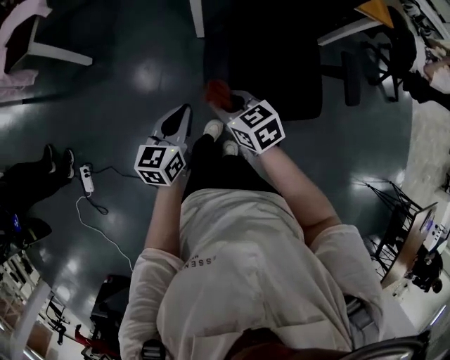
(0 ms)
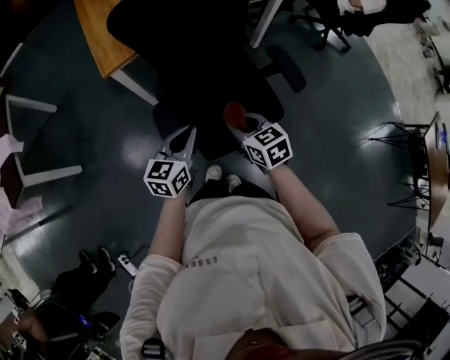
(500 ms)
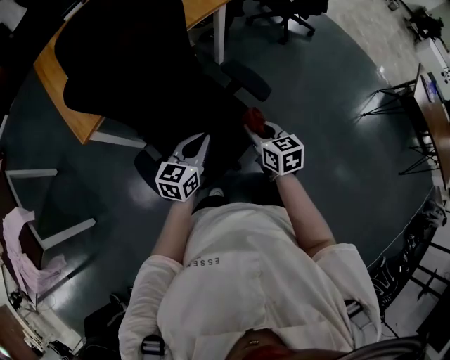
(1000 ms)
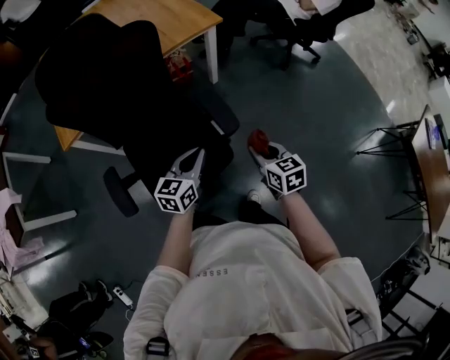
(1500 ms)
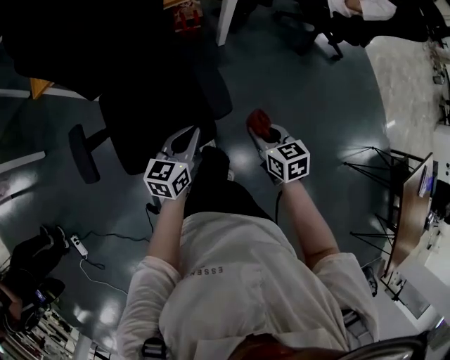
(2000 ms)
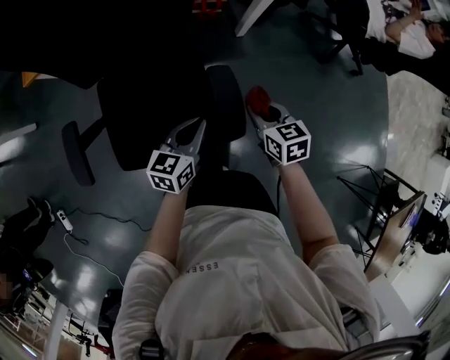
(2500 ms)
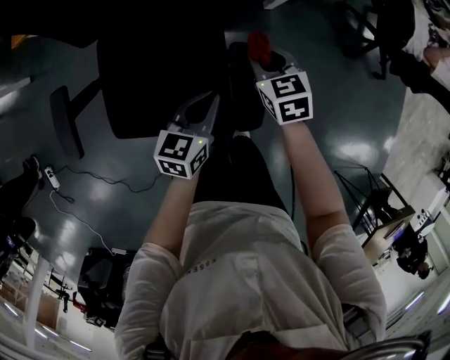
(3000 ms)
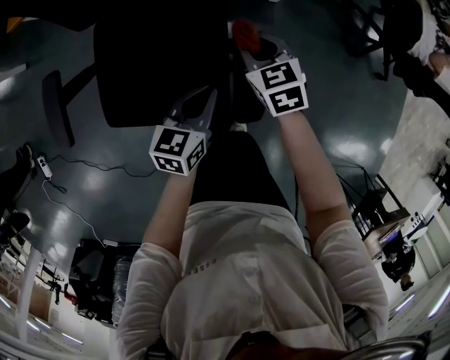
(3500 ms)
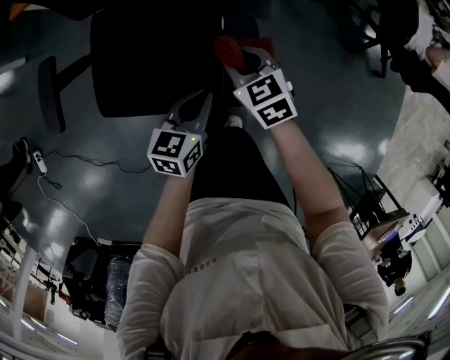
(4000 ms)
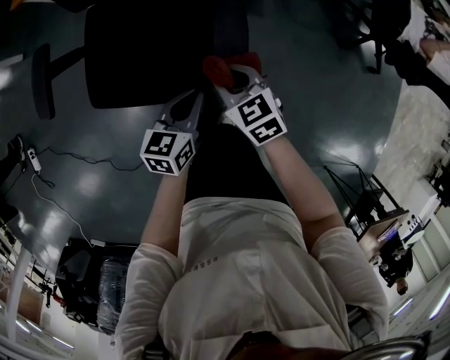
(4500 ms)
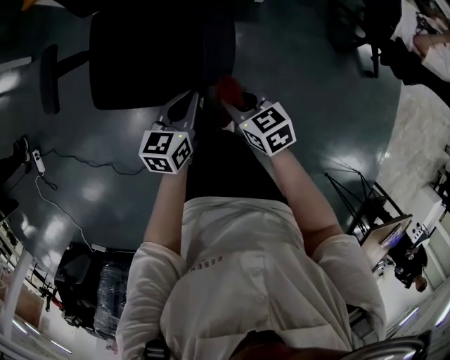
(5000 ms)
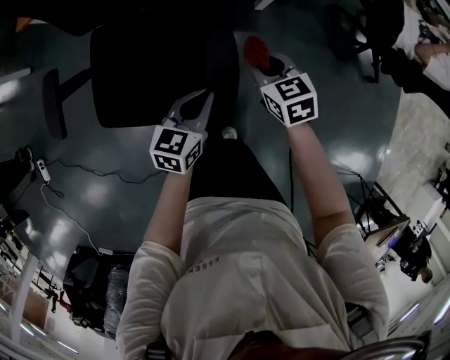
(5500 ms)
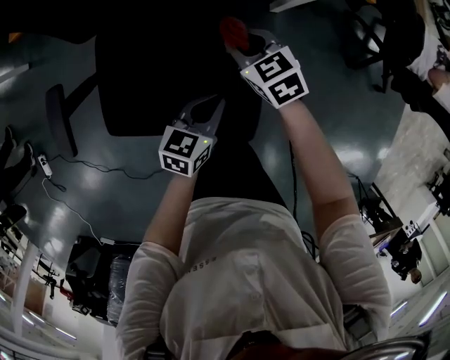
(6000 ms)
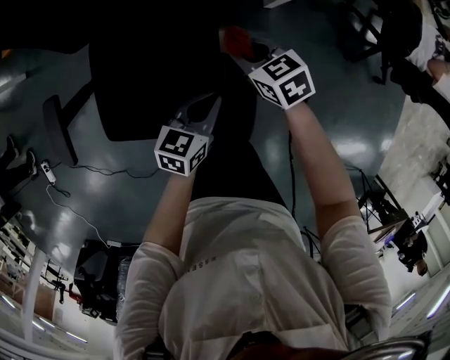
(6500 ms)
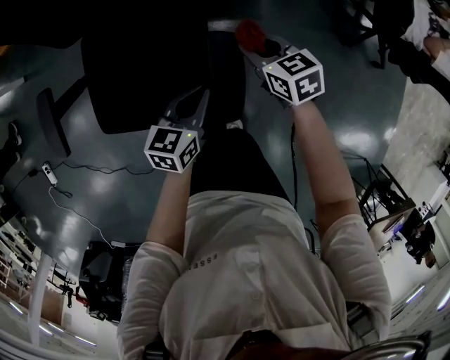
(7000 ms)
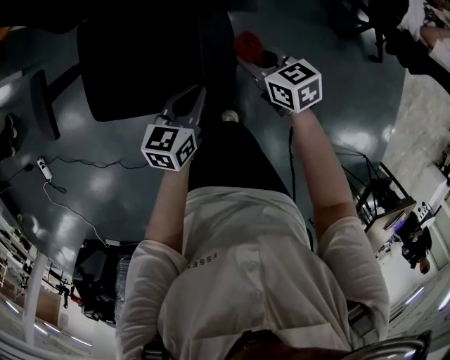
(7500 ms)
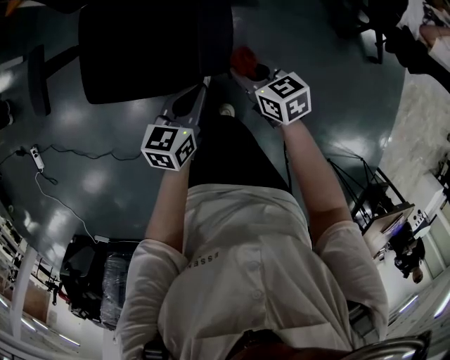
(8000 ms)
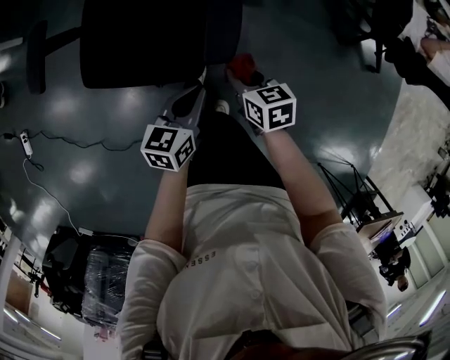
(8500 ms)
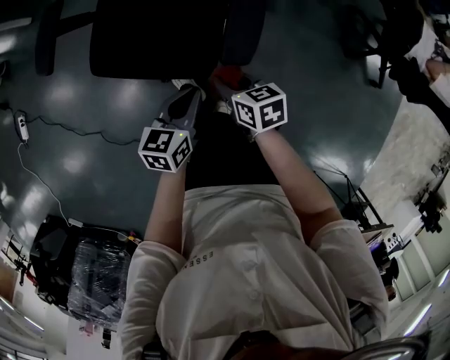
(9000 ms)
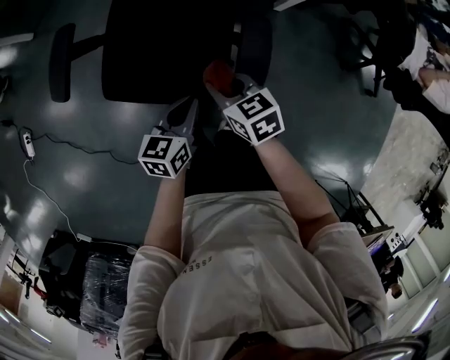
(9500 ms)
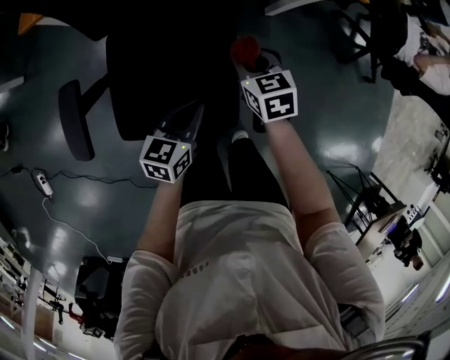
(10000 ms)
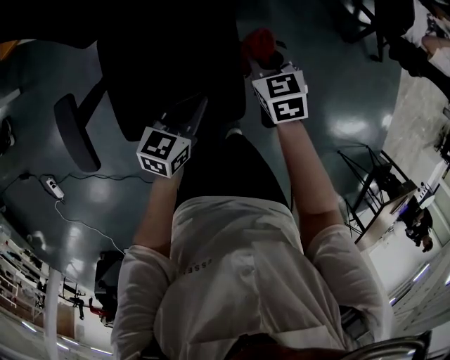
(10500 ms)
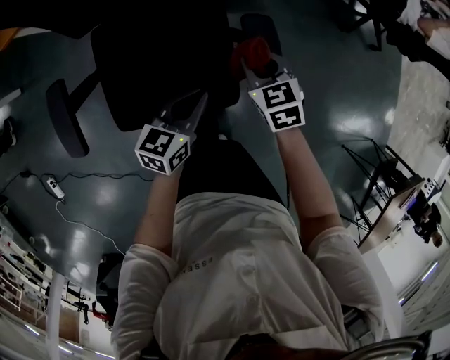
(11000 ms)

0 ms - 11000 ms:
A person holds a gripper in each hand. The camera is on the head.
0 ms - 2000 ms: Both grippers are carried some 60 cm. The right gripper turns by approximately 40 degrees; the left gripper changes its angle by about 20 degrees.
2000 ms - 3500 ms: The left gripper heads forward and downward, covering about 15 cm. The right gripper moves forward and to the left, some 30 cm, and swivels approximately 30 degrees.
3500 ms - 5500 ms: The grippers both shift to the right by some 5 cm. The left gripper moves some 10 cm backward and comes back; the right gripper moves approximately 25 cm backward and comes back.
5500 ms - 7500 ms: The left gripper moves roughly 10 cm forward and comes back. The right gripper travels forward and back again, approximately 15 cm each way.
7500 ms - 9000 ms: The grippers both shift backward and to the left by approximately 15 cm.
9000 ms - 11000 ms: The left gripper moves roughly 15 cm, and changes its angle by about 30 degrees; the right gripper turns by roughly 30 degrees.

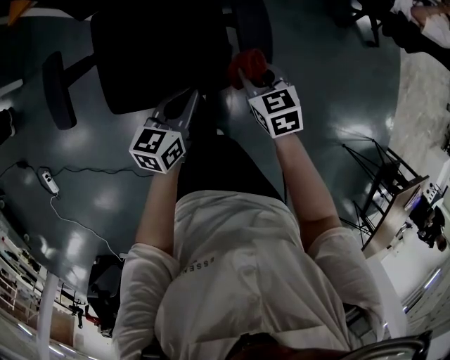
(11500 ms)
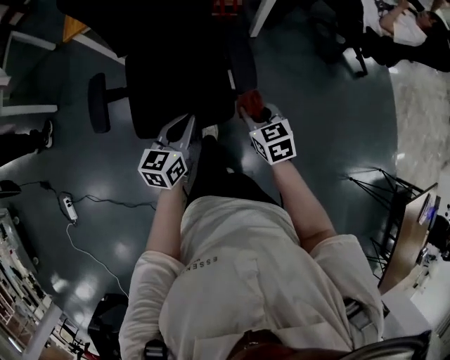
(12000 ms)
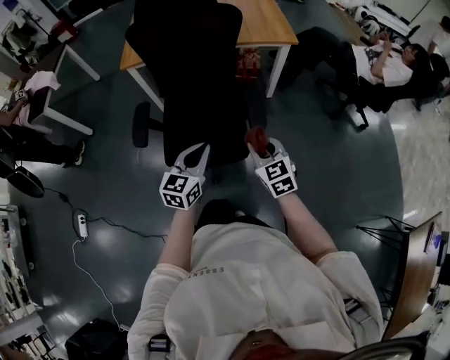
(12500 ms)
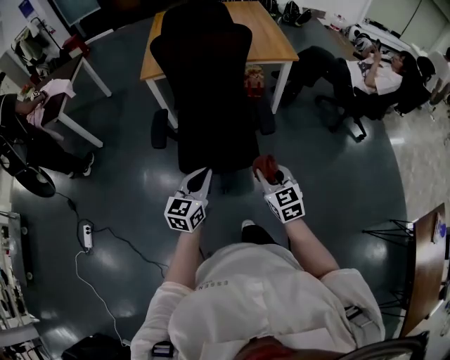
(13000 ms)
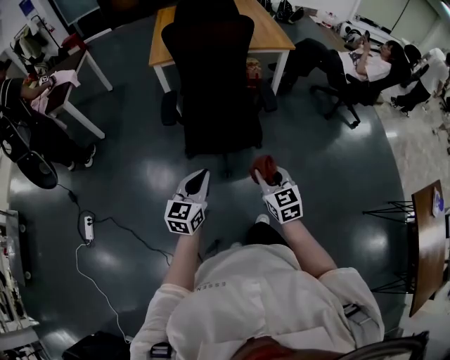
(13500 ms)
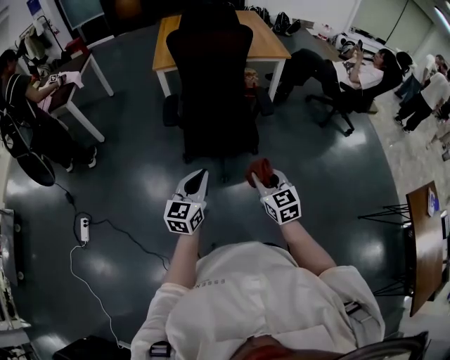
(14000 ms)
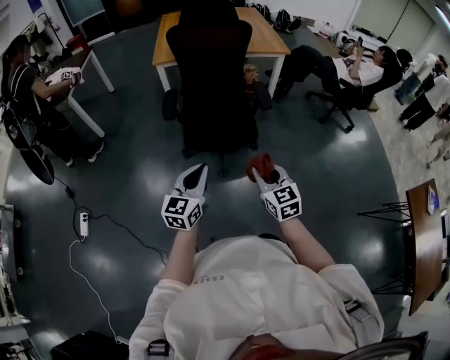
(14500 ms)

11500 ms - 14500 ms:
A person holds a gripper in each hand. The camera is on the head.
11500 ms - 13000 ms: The right gripper moves backward and upward, about 35 cm, and changes its angle by approximately 30 degrees, while the left gripper moves upward, backward and to the left, approximately 35 cm, and swivels about 30 degrees.
13000 ms - 14500 ms: The grippers both shift backward by about 20 cm.

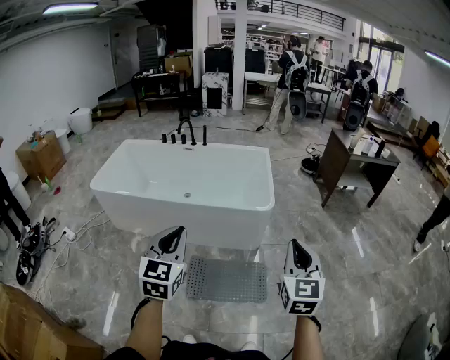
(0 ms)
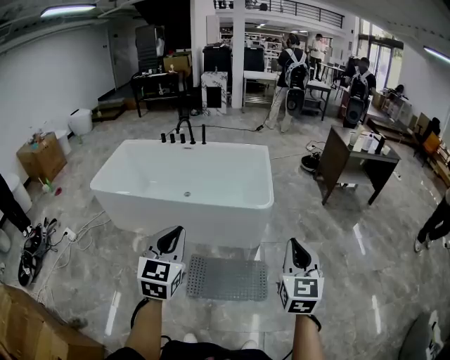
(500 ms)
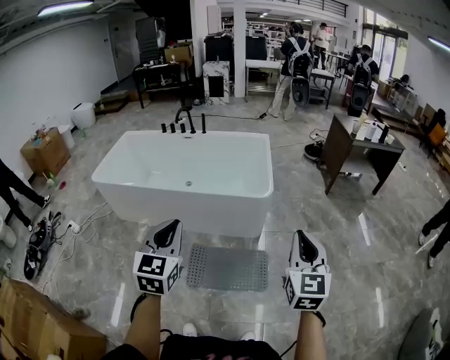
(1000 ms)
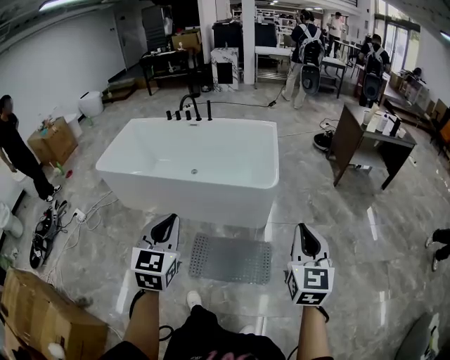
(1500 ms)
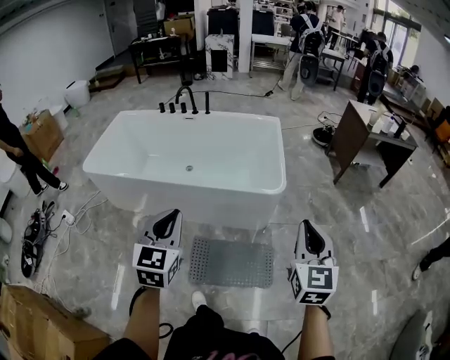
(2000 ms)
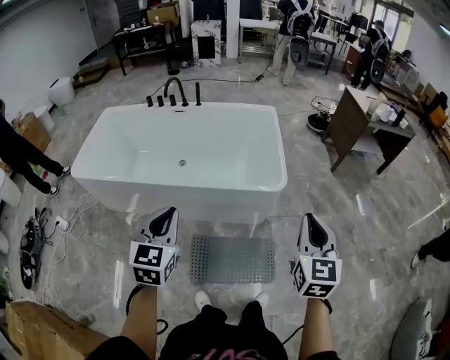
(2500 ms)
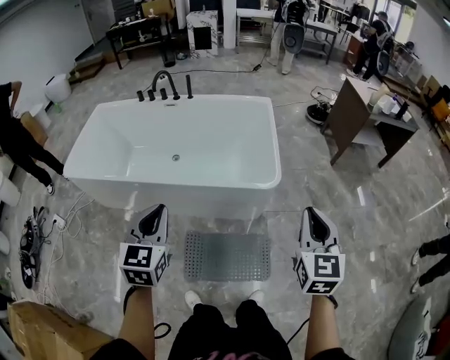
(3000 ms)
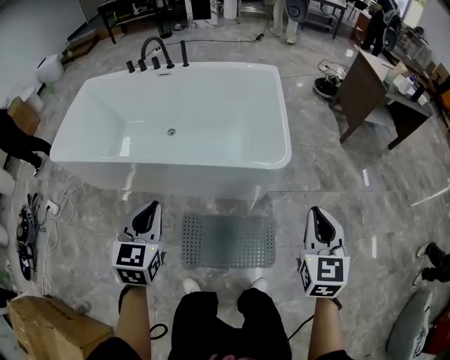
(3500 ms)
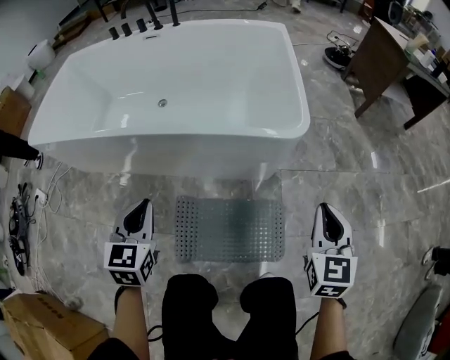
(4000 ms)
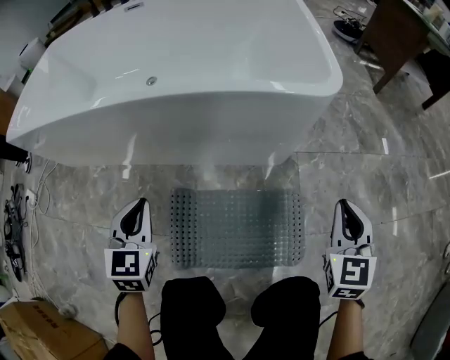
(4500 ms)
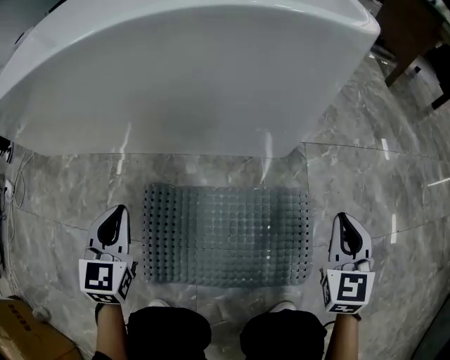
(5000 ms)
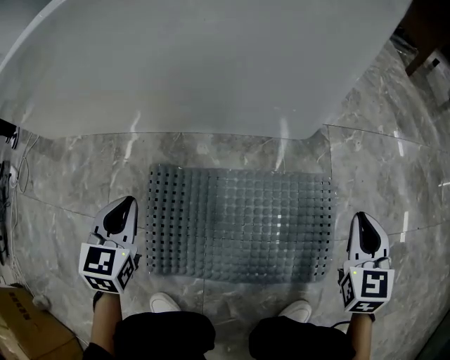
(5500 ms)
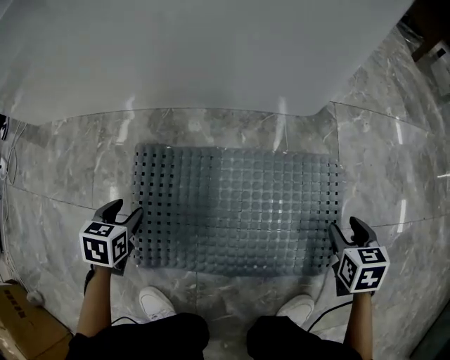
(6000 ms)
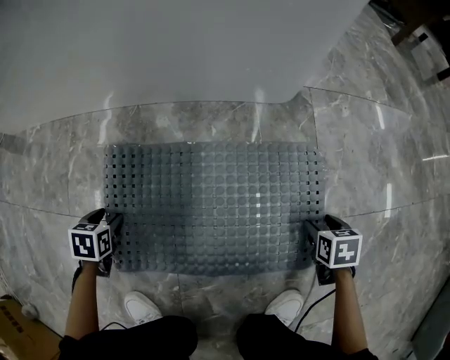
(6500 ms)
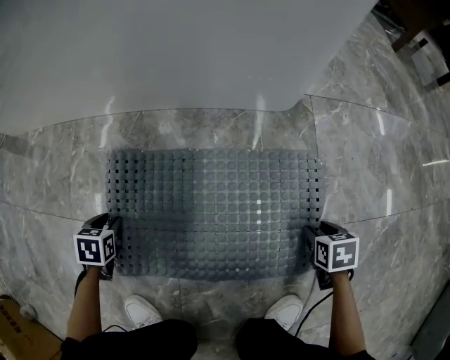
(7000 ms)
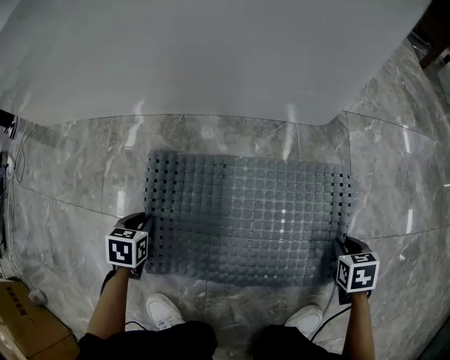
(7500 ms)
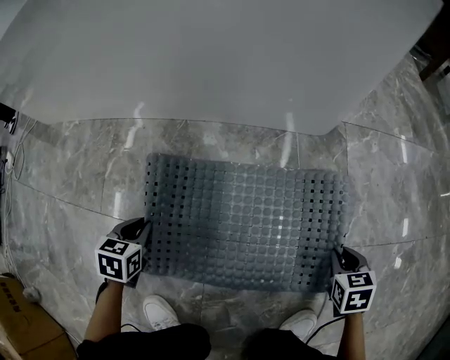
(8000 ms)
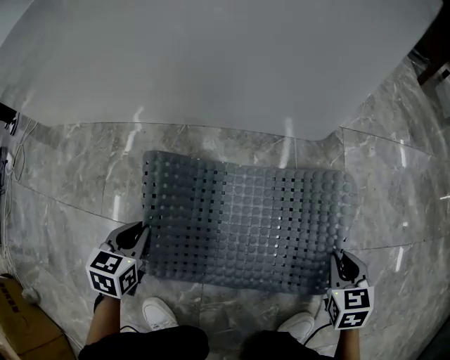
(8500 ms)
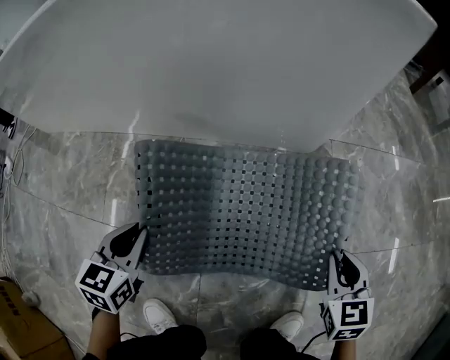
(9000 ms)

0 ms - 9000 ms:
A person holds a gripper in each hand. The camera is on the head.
0 ms - 2000 ms: The left gripper moves forward and downward, roughly 15 cm; the right gripper travels forward by approximately 15 cm.
2000 ms - 4500 ms: The grippers both shift downward by roughly 60 cm.
4500 ms - 7000 ms: Both grippers move downward, some 50 cm. The right gripper points its fingers about 50 degrees further downward, and opens up. Meanwhile the left gripper tilts its fingers approximately 40 degrees downward, and opens its fingers.
7000 ms - 9000 ms: Both grippers move upward, about 20 cm. The left gripper tips its fingers upward by roughly 30 degrees, and closes its fingers. Meanwhile the right gripper points its fingers roughly 30 degrees further upward, and closes.

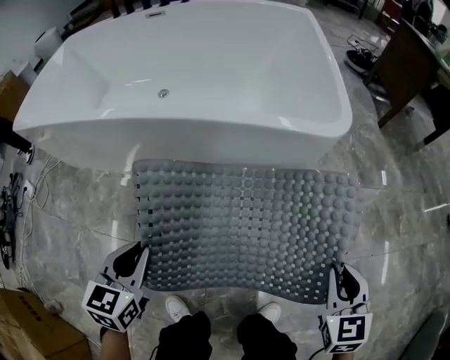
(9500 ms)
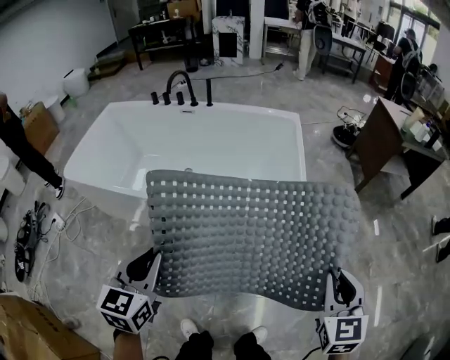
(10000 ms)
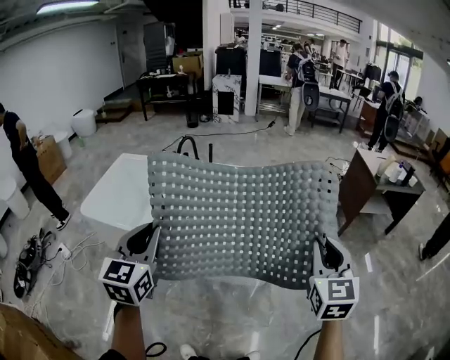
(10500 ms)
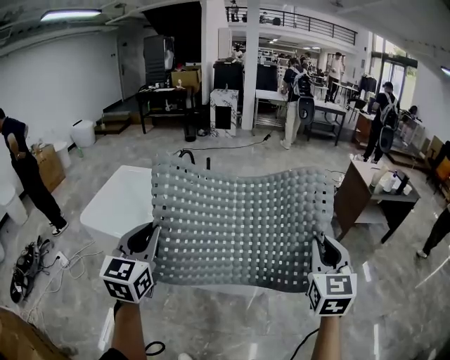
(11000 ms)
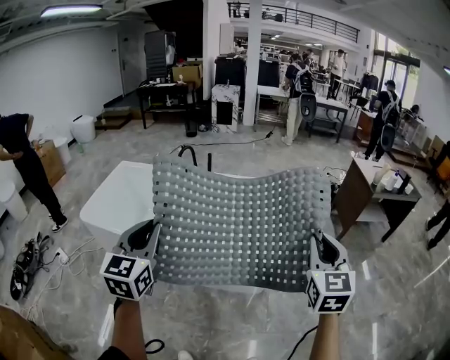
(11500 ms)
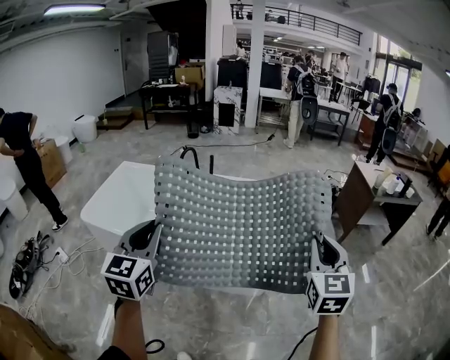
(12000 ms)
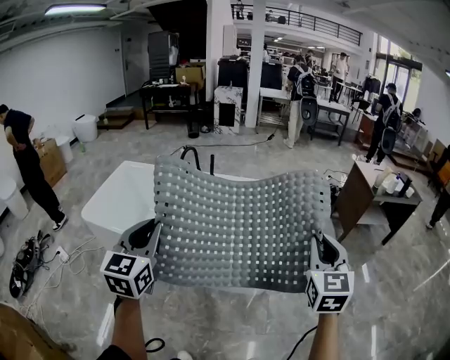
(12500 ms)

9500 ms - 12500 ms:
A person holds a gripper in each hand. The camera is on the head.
9500 ms - 11000 ms: Both grippers travel together upward, approximately 70 cm. The left gripper tilts its fingers about 30 degrees upward. Meanwhile the right gripper angles its fingers upward, by about 30 degrees.
11000 ms - 12500 ms: The grippers move only a little.
